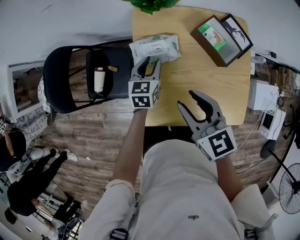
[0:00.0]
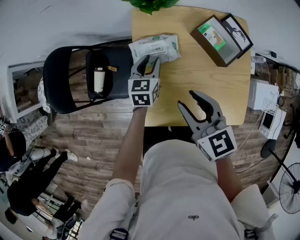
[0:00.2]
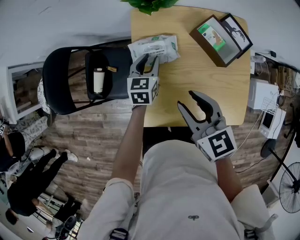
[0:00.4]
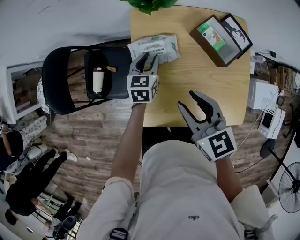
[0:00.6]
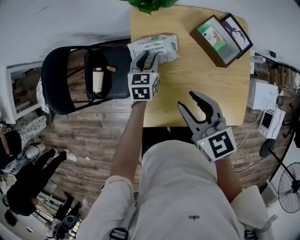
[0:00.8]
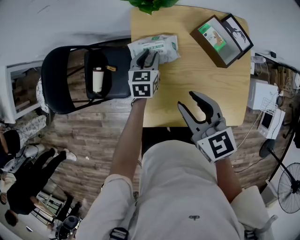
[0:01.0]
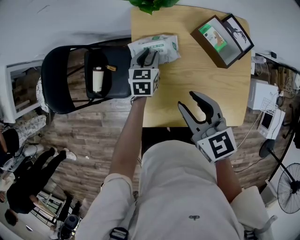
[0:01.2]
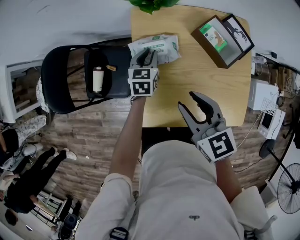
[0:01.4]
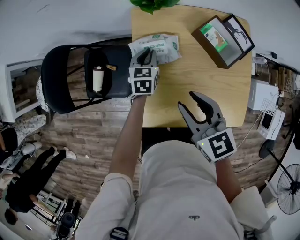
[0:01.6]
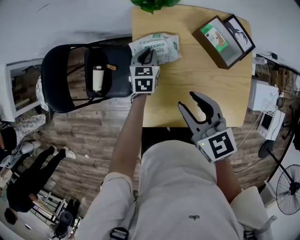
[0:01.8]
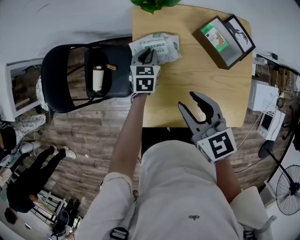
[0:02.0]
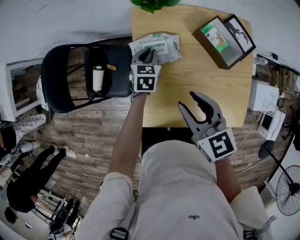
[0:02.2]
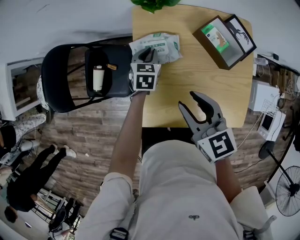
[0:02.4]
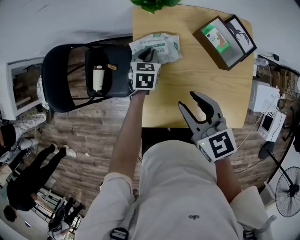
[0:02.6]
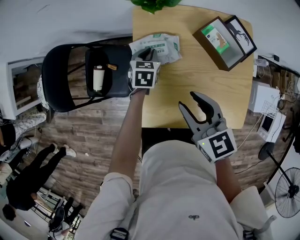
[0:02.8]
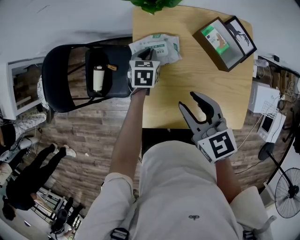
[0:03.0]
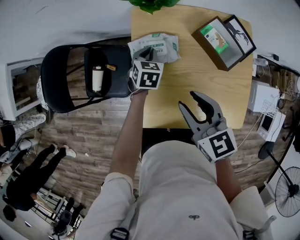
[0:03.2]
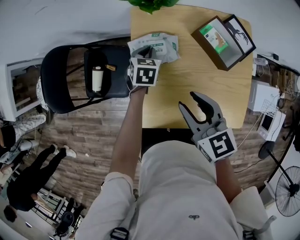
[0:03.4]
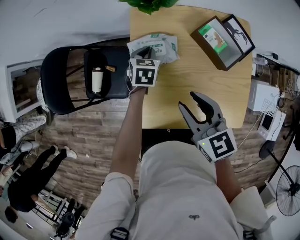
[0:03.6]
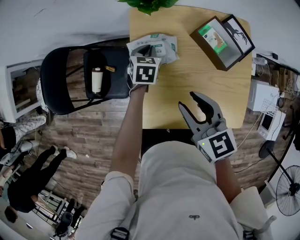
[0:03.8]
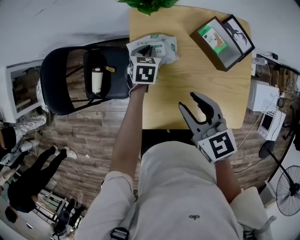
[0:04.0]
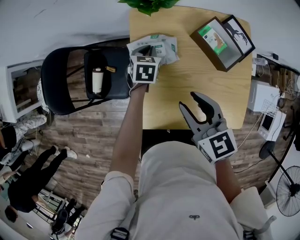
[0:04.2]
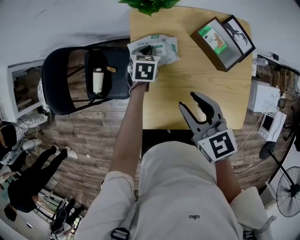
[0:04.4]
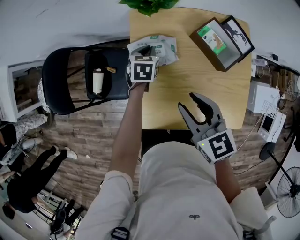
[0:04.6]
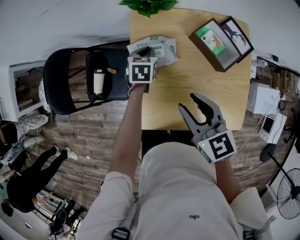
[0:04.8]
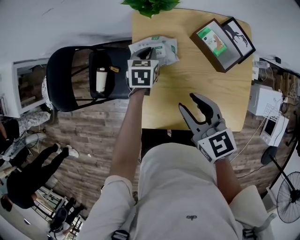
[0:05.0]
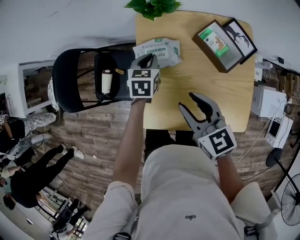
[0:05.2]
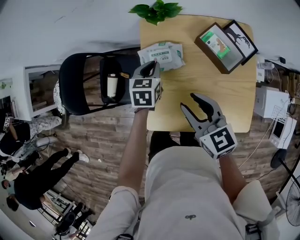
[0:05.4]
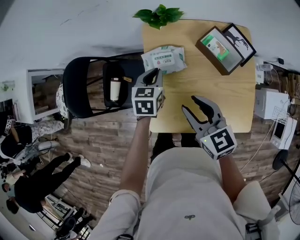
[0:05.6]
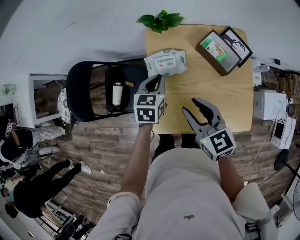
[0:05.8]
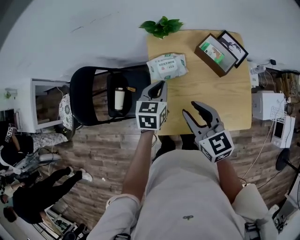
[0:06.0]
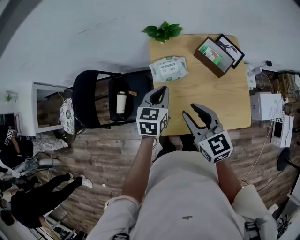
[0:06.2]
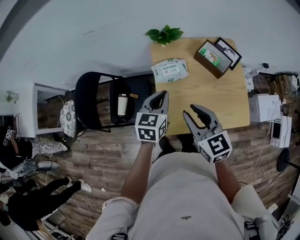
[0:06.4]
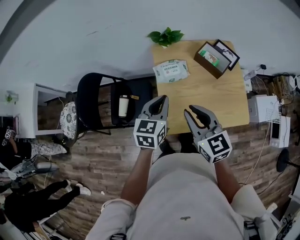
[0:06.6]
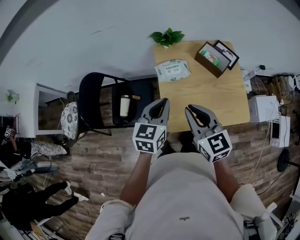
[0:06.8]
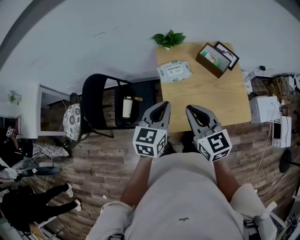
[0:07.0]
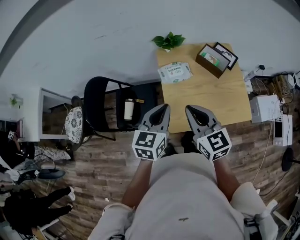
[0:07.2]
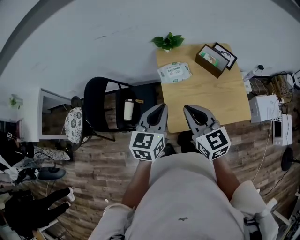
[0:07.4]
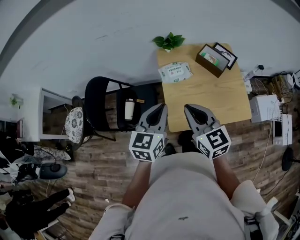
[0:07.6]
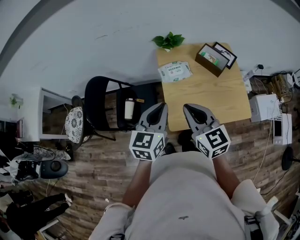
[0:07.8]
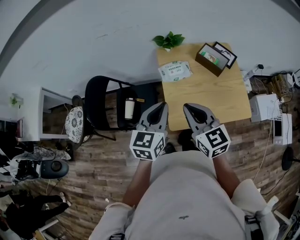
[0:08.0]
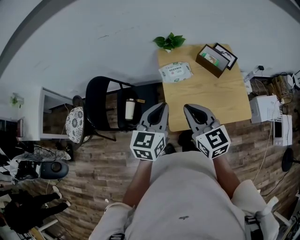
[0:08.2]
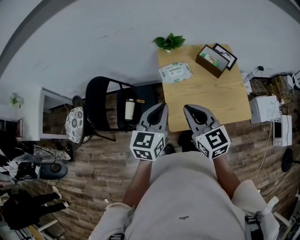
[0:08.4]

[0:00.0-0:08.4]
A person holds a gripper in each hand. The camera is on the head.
0:00.0 to 0:01.4: The grippers stay close to where they were, moving slightly.
0:01.4 to 0:04.2: The grippers move only a little.
0:04.2 to 0:05.6: The left gripper goes roughly 15 cm upward and backward.
0:05.6 to 0:07.0: The right gripper goes approximately 20 cm backward, upward and to the left, and closes. Meanwhile the left gripper is displaced backward and upward by roughly 25 cm, and rotates about 20 degrees.
0:07.0 to 0:08.4: The grippers move only a little.

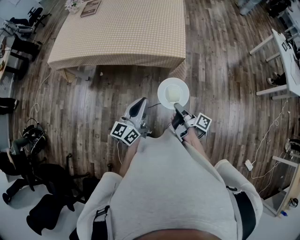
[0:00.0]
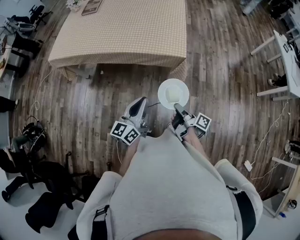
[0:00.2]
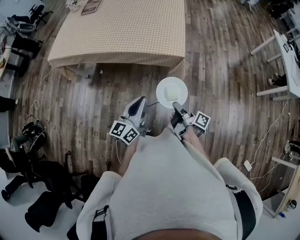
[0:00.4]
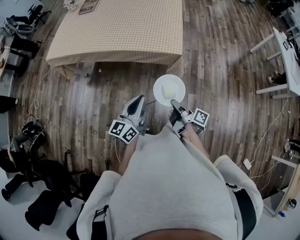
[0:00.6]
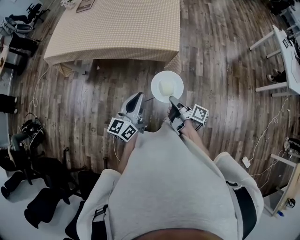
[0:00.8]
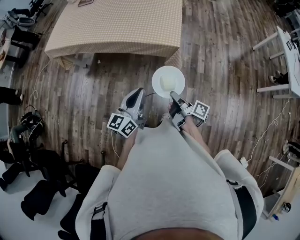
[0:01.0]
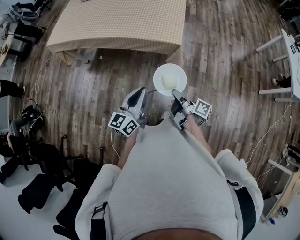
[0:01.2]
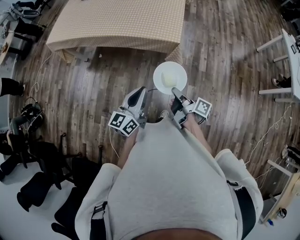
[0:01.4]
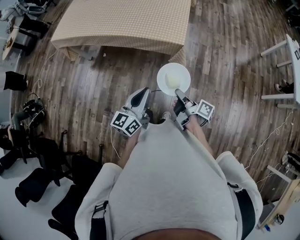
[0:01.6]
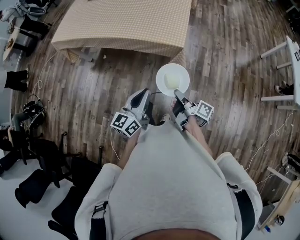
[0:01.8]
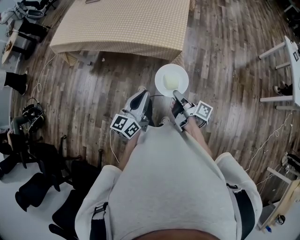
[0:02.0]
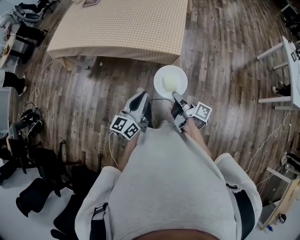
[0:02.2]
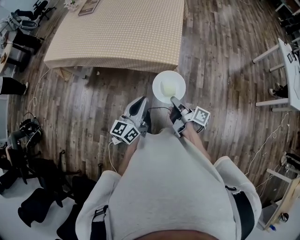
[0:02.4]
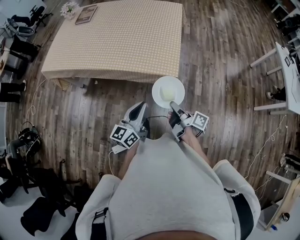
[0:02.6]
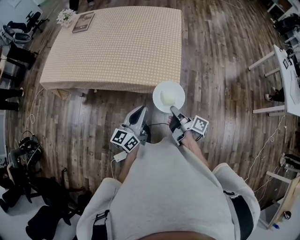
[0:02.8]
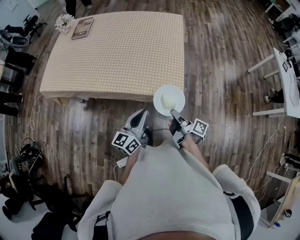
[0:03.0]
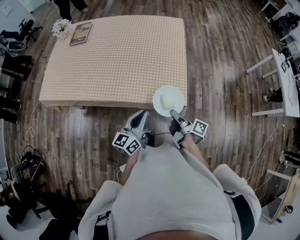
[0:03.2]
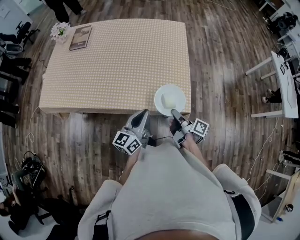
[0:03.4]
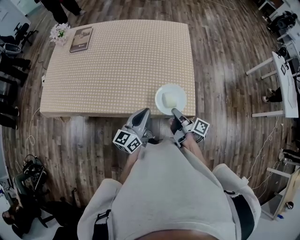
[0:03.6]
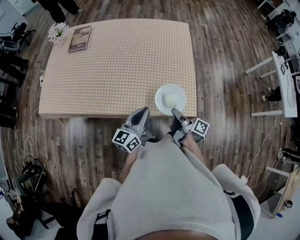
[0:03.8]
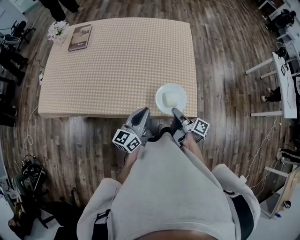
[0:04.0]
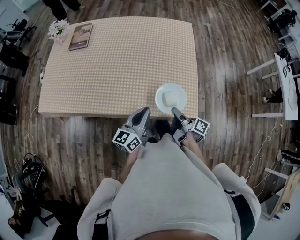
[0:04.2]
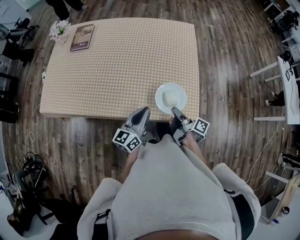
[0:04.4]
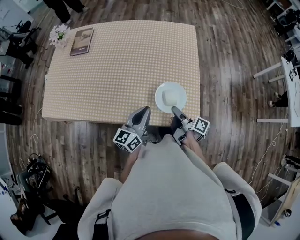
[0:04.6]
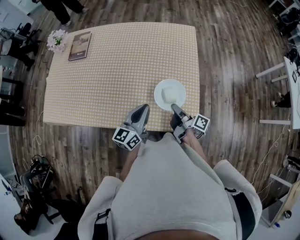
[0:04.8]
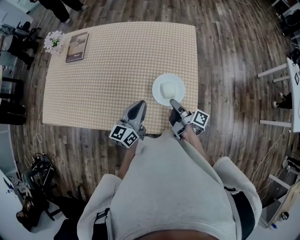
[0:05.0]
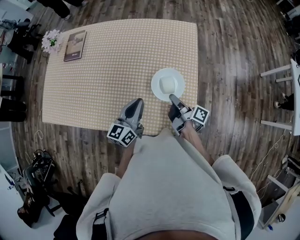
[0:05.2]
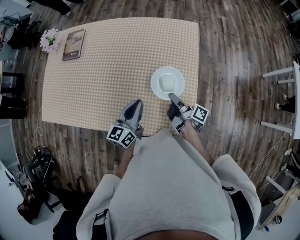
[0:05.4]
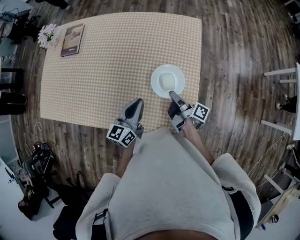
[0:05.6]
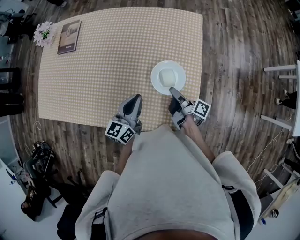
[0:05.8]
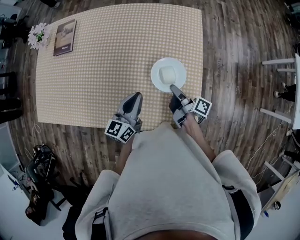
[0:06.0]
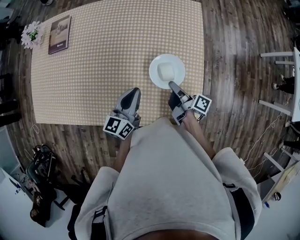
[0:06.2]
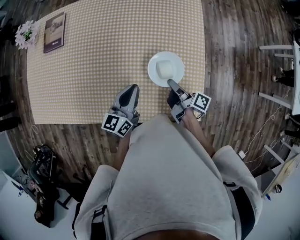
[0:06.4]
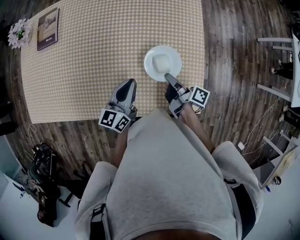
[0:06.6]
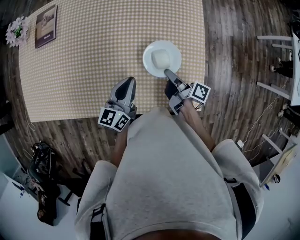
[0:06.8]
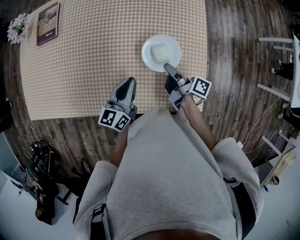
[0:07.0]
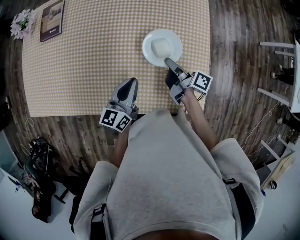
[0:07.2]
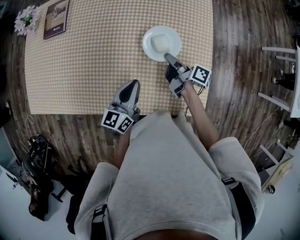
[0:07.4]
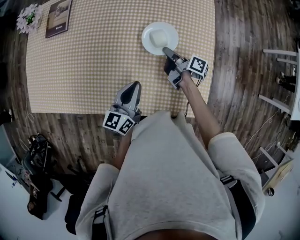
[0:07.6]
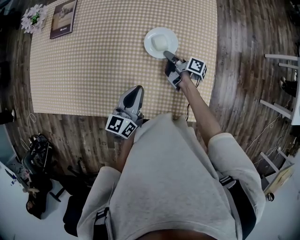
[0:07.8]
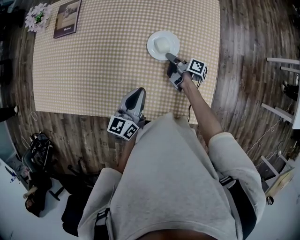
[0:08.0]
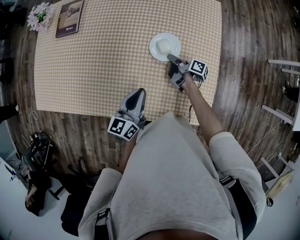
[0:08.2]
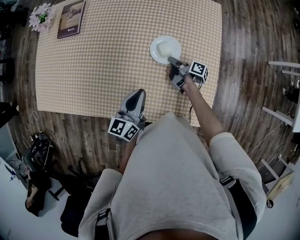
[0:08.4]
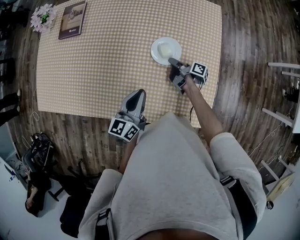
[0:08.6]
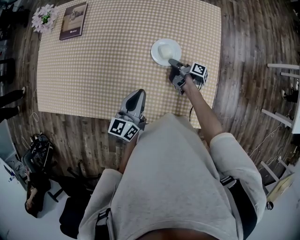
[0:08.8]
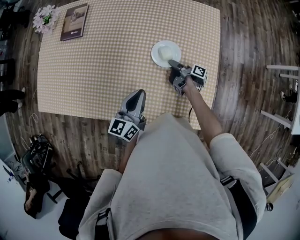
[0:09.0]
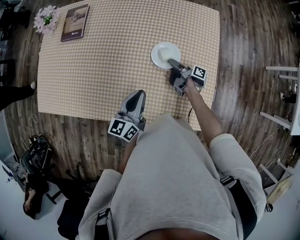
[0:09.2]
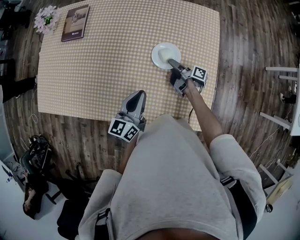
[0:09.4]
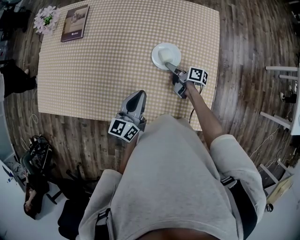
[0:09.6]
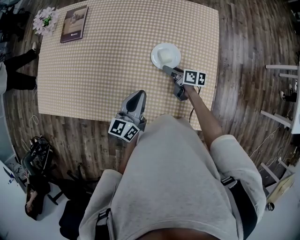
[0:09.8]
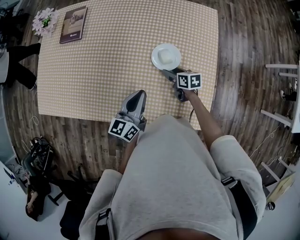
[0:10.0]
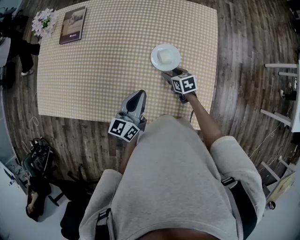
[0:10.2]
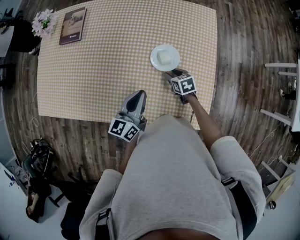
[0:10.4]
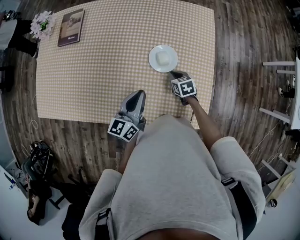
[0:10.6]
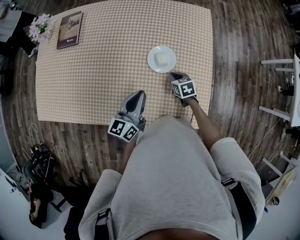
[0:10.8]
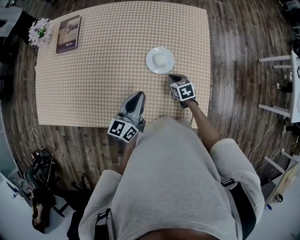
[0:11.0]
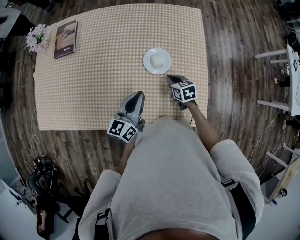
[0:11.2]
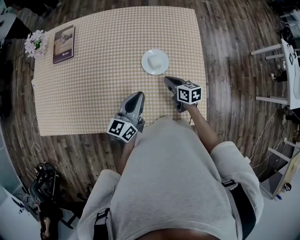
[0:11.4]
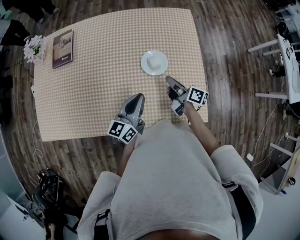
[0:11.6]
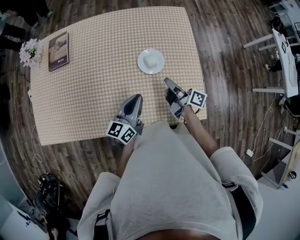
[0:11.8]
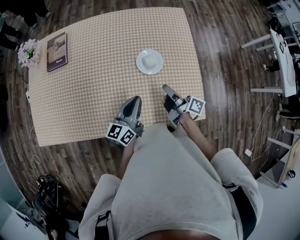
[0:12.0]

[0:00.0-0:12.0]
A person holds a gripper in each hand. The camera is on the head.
0:00.0 to 0:01.6: The left gripper moves roughly 10 cm.
0:01.6 to 0:03.0: The left gripper ends up about 25 cm from where it was.
0:03.0 to 0:04.4: The left gripper changes place by approximately 20 cm.
0:04.4 to 0:06.0: The left gripper moves roughly 20 cm.
0:06.0 to 0:07.6: The left gripper shifts by roughly 5 cm.

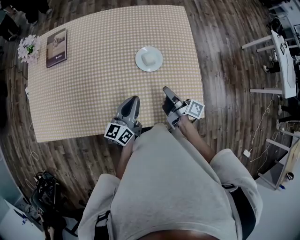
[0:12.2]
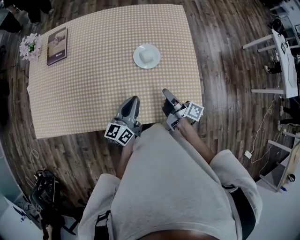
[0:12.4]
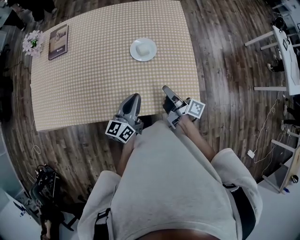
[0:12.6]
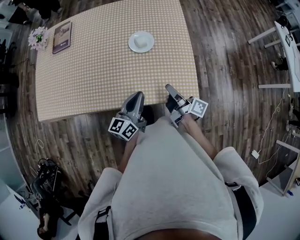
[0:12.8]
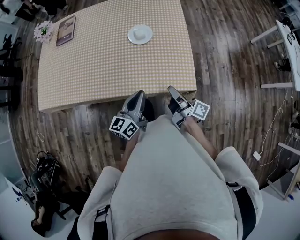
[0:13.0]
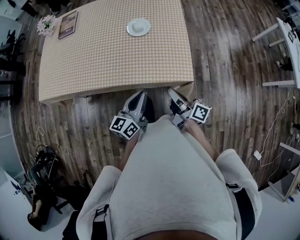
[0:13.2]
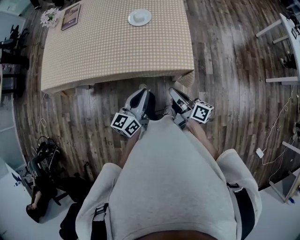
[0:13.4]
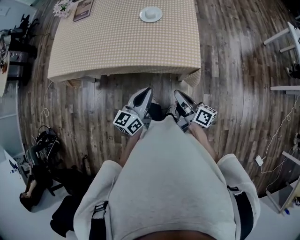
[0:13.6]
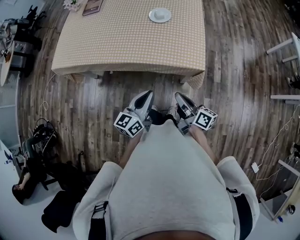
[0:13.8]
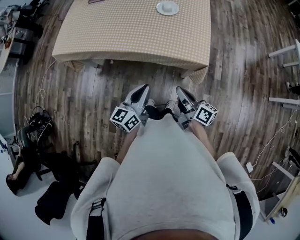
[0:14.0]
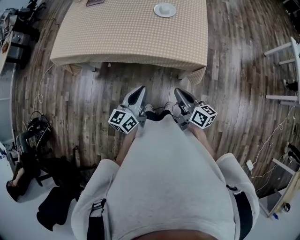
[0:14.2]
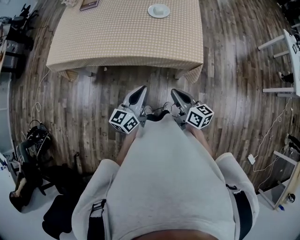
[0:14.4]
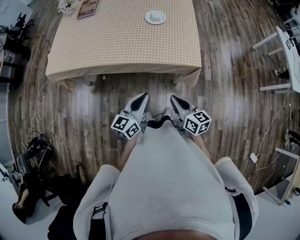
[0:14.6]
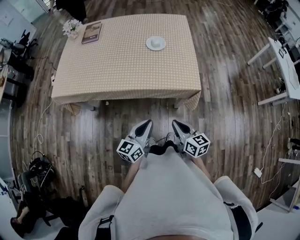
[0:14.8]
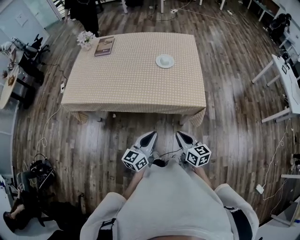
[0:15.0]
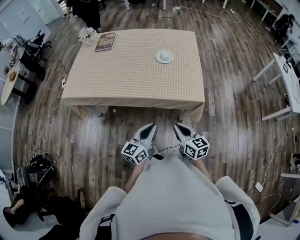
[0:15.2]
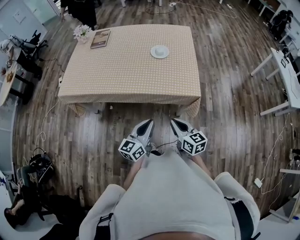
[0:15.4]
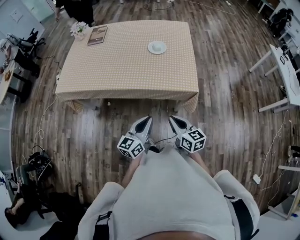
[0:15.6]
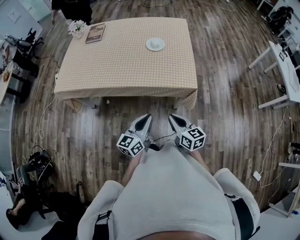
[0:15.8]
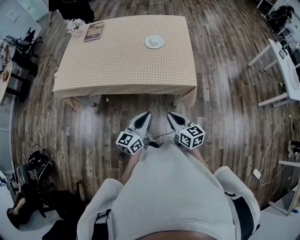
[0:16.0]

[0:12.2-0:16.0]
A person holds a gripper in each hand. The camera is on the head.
0:12.2 to 0:13.4: The left gripper shifts by approximately 35 cm.
0:13.4 to 0:14.8: The left gripper changes place by roughly 15 cm.
